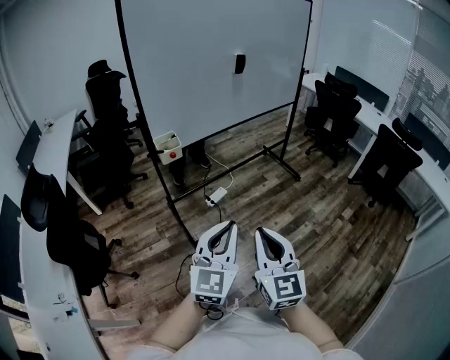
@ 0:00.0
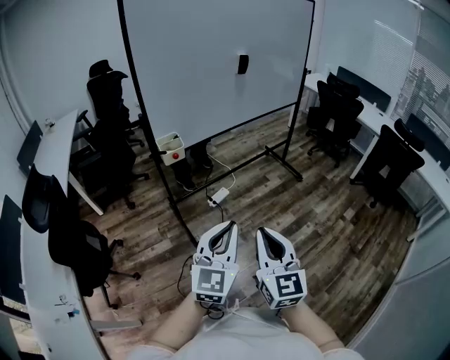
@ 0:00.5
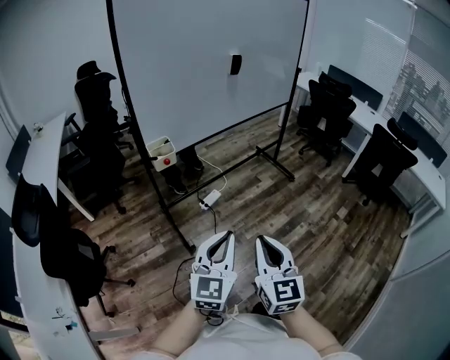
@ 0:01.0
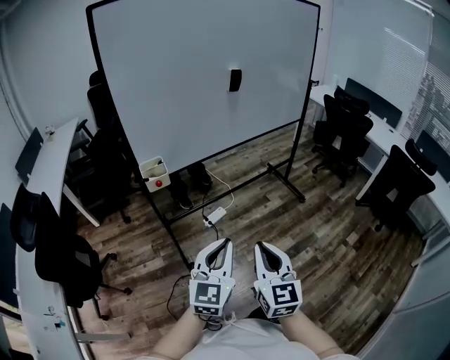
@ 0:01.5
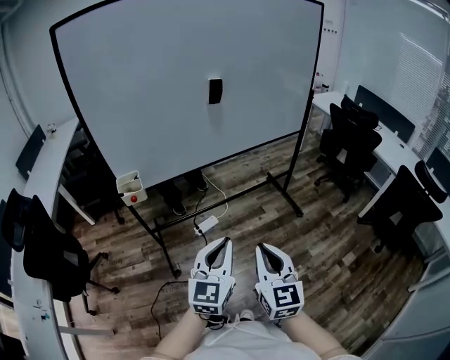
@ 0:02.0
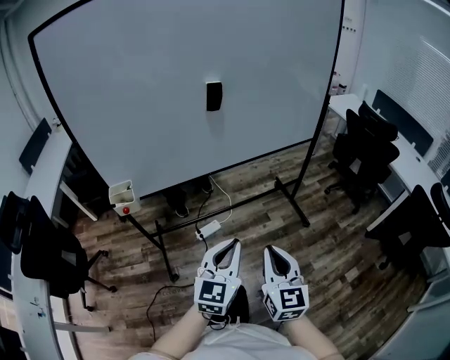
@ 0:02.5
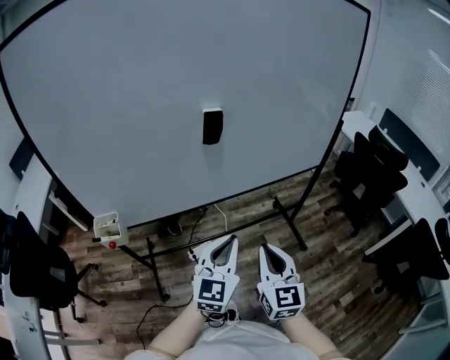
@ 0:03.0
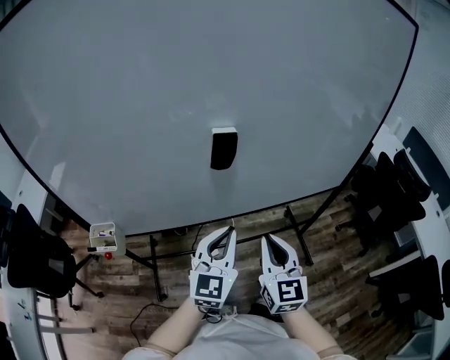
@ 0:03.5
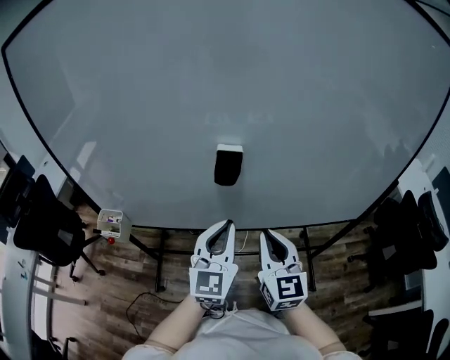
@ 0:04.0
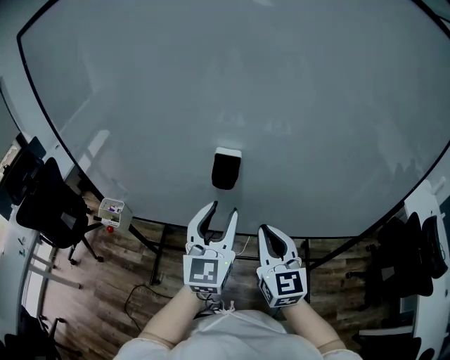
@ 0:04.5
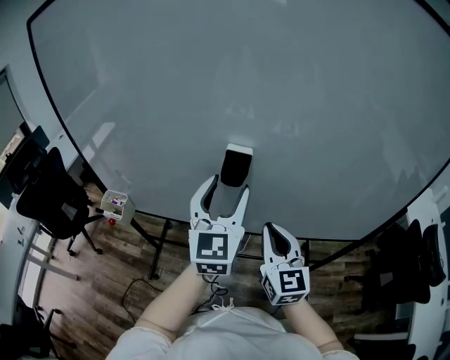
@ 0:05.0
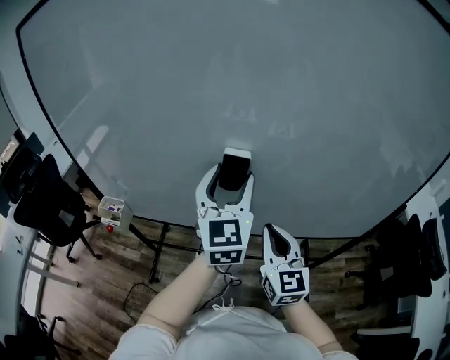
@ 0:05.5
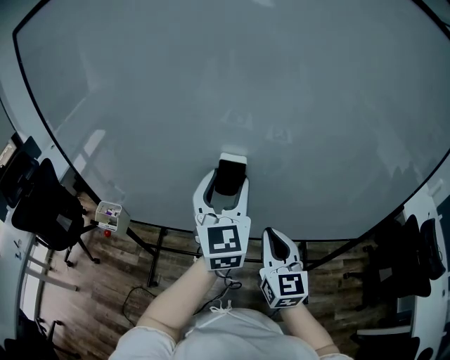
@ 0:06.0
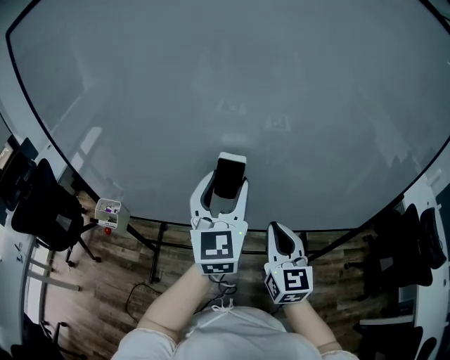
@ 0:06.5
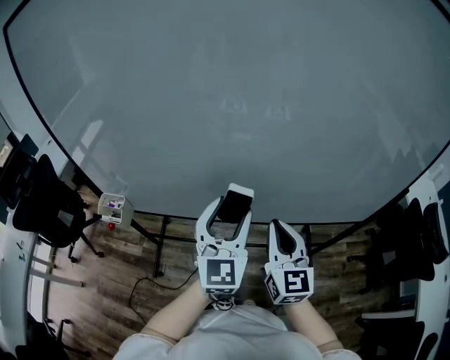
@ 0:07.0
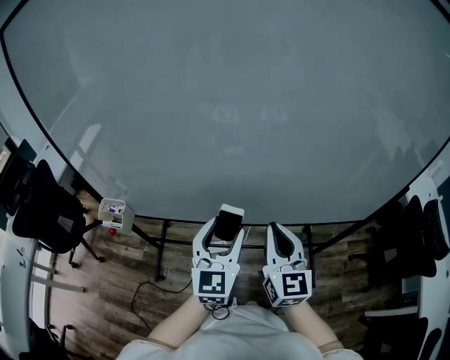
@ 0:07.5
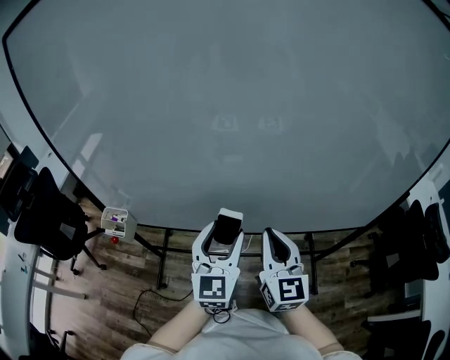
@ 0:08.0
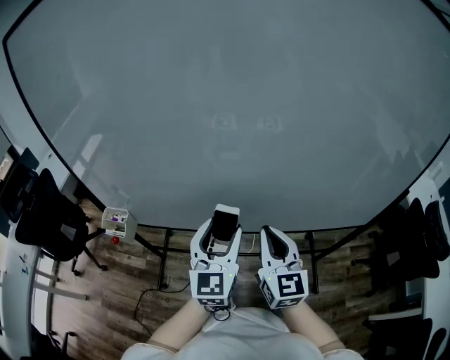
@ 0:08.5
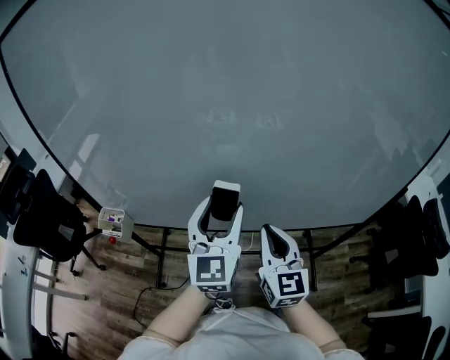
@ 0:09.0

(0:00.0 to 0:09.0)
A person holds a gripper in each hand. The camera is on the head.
0:00.0 - 0:02.0: Both grippers move forward and to the right, about 30 cm.
0:02.0 - 0:04.5: The pair of grippers is taken about 50 cm. The right gripper changes its angle by some 30 degrees, while the left gripper turns by some 40 degrees, and opens its fingers.
0:04.5 - 0:07.0: The left gripper goes upward and returns, approximately 5 cm each way.
0:07.0 - 0:09.0: The left gripper reaches about 5 cm downward, then returns.

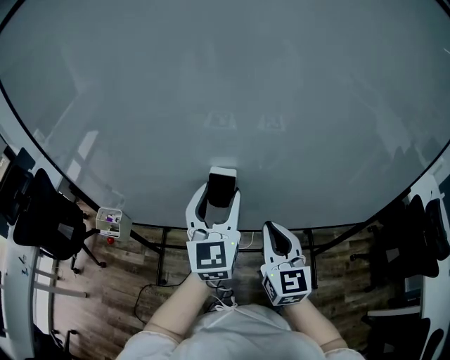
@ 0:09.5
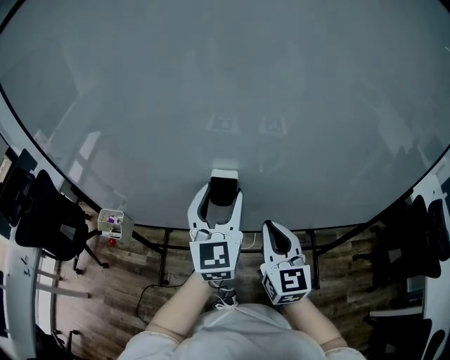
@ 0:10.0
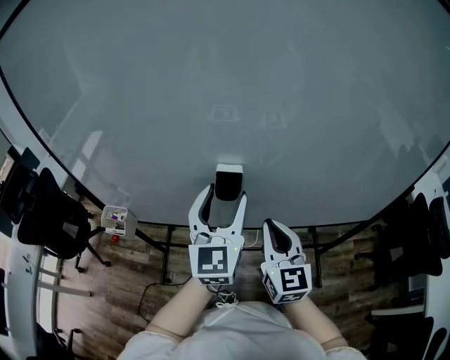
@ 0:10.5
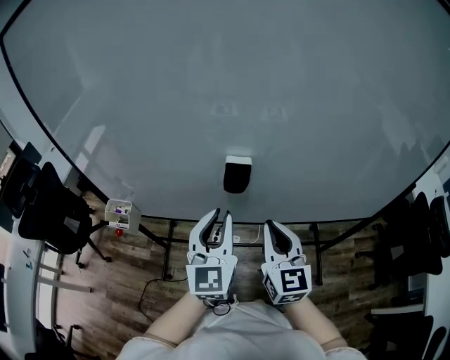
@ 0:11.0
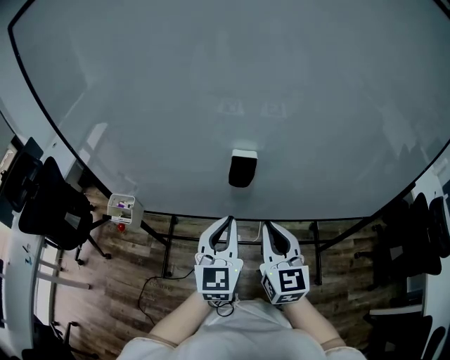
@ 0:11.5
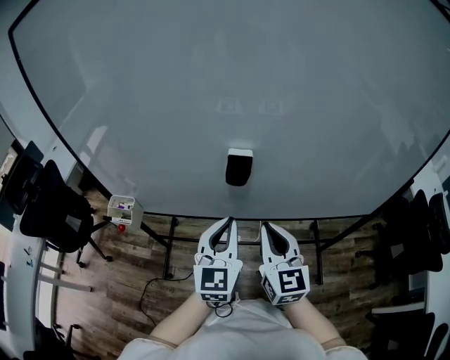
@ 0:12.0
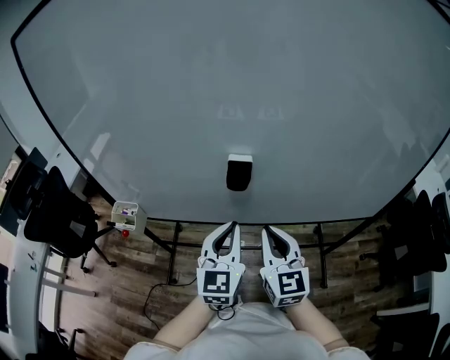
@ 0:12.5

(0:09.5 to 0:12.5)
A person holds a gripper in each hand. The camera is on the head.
0:09.5 - 0:11.0: The left gripper shifts about 5 cm backward, and closes.
0:11.0 - 0:12.5: The grippers move only a little.

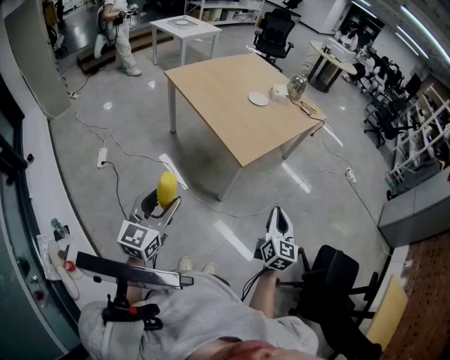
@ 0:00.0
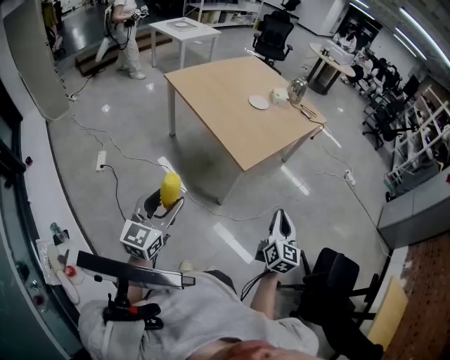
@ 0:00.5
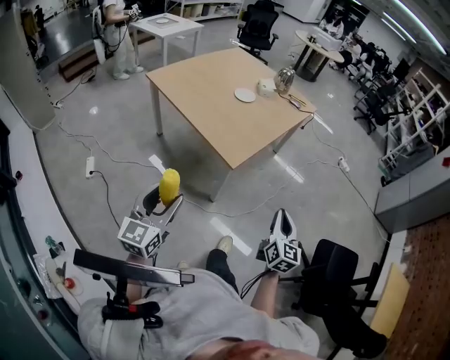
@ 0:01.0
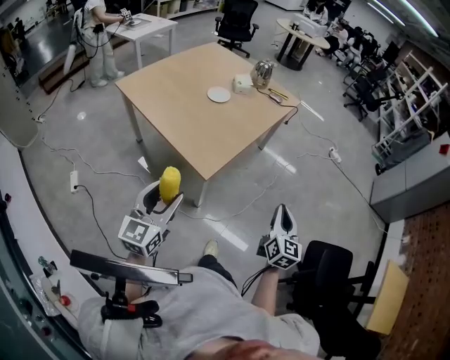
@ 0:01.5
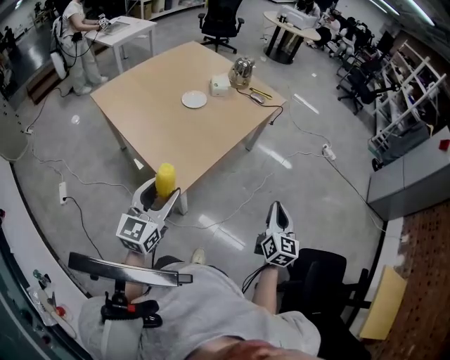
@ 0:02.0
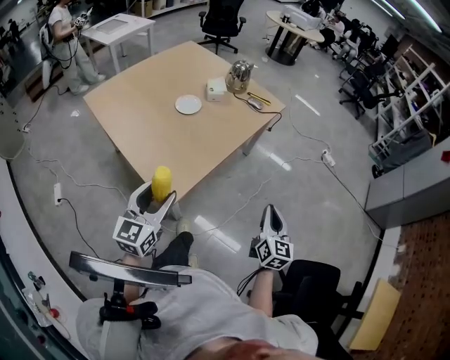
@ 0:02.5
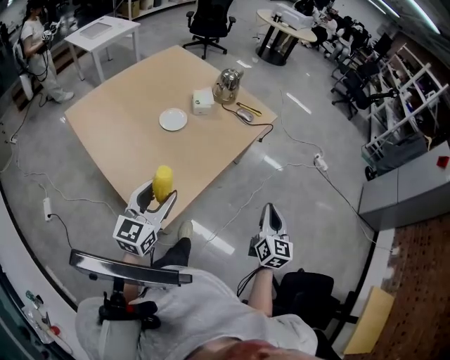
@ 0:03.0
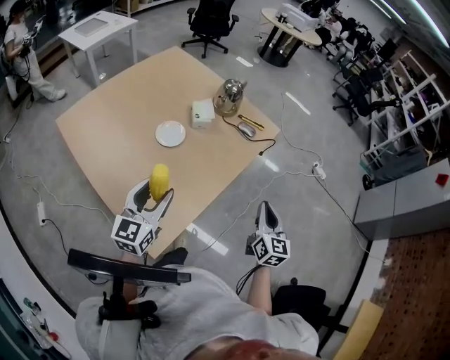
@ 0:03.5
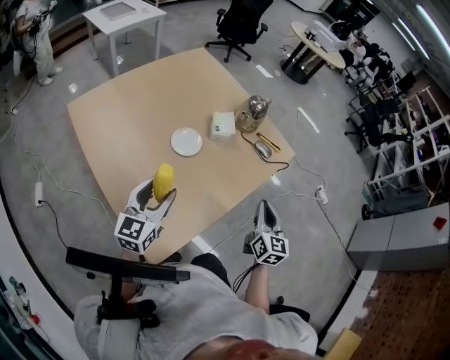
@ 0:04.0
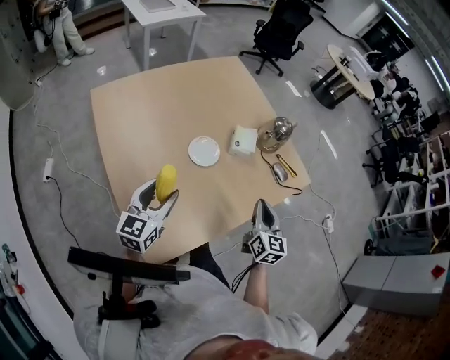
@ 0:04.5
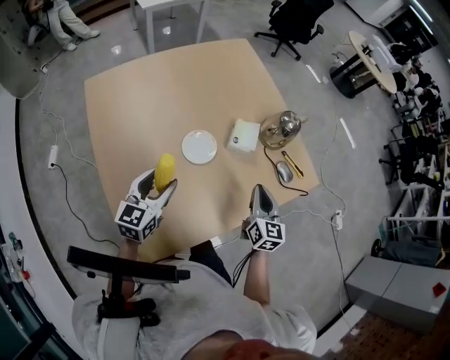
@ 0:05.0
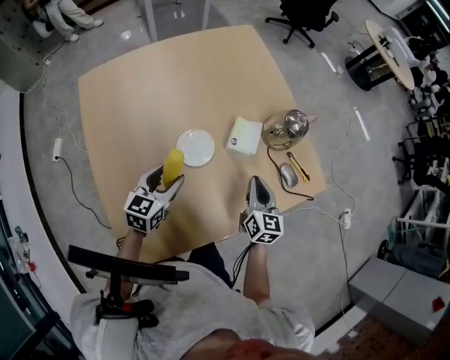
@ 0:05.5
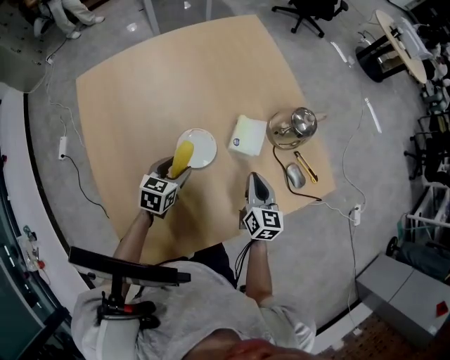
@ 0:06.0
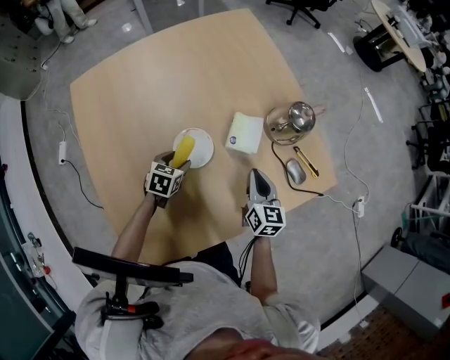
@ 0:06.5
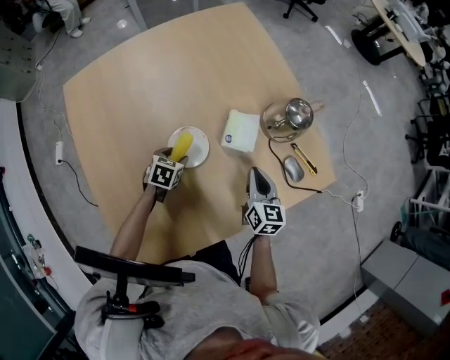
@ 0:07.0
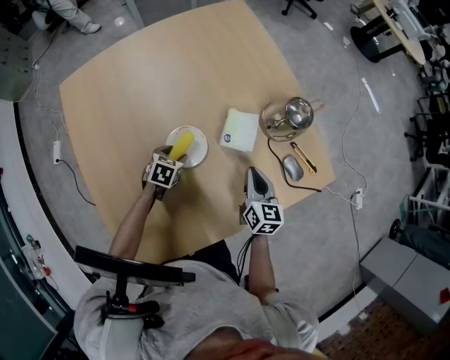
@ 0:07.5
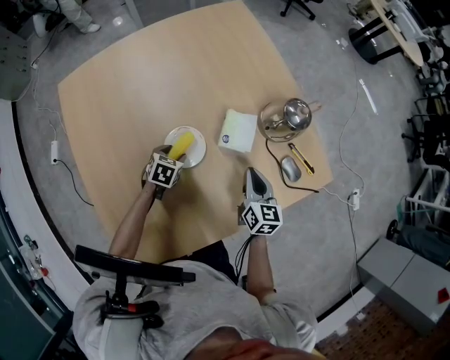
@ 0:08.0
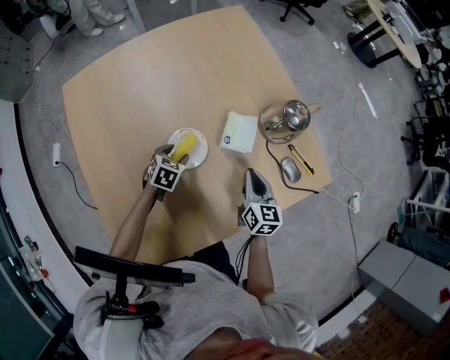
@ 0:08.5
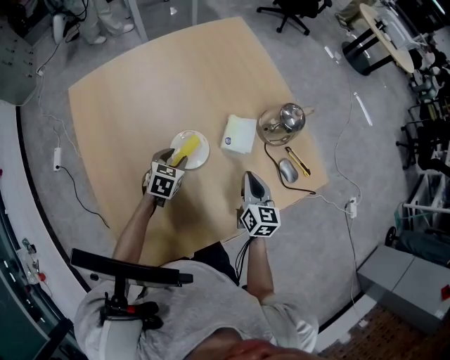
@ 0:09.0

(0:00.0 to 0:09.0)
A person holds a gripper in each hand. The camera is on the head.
0:00.0 - 0:02.0: The grippers both shift forward and to the right by some 35 cm.
0:02.0 - 0:04.5: The two grippers go some 40 cm forward. The left gripper changes its angle by roughly 20 degrees. Meanwhile the right gripper rotates roughly 30 degrees.
0:04.5 - 0:07.0: The right gripper heads forward and downward, covering some 25 cm. Meanwhile the left gripper is displaced downward and forward by about 35 cm, and points its fingers approximately 50 degrees further downward.
0:07.0 - 0:09.0: The left gripper moves upward, roughly 5 cm.

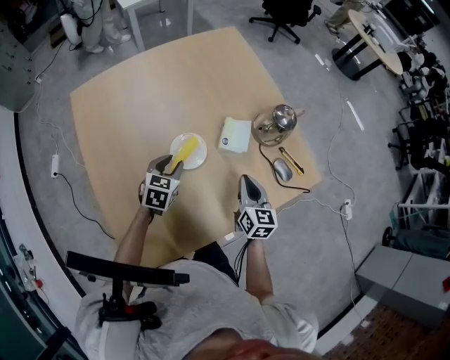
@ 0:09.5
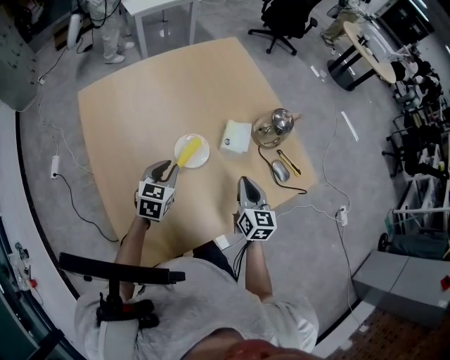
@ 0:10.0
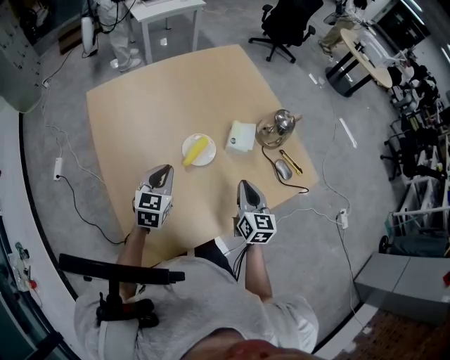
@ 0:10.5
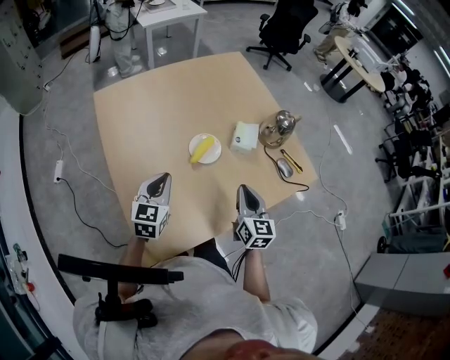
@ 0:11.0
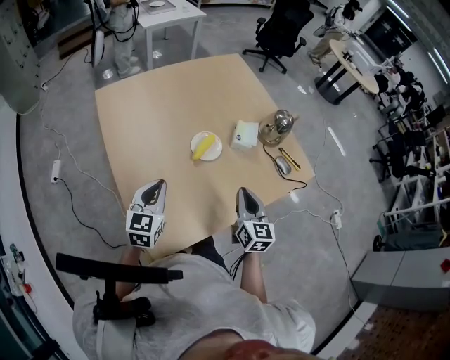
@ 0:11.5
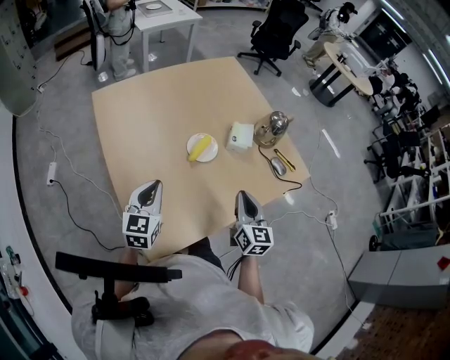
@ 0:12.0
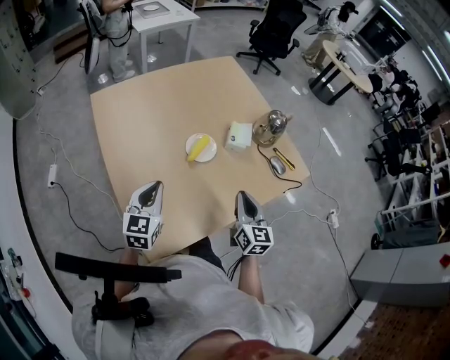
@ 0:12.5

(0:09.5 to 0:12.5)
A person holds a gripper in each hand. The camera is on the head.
0:09.5 - 0:11.0: The left gripper heads backward, upward and to the left, covering roughly 20 cm, turns by some 20 degrees, and closes up, while the right gripper heads backward, to the left and upward, covering approximately 15 cm.
0:11.0 - 0:12.5: The left gripper changes place by approximately 5 cm.

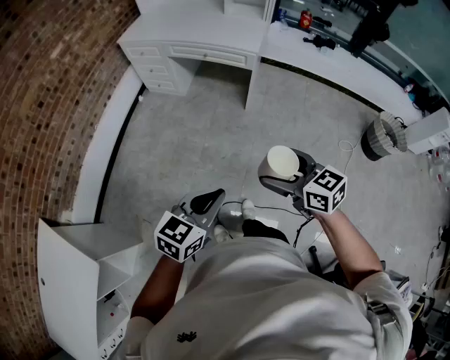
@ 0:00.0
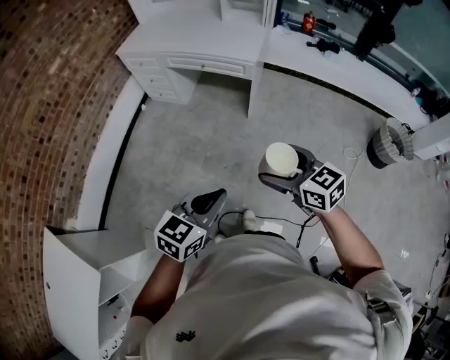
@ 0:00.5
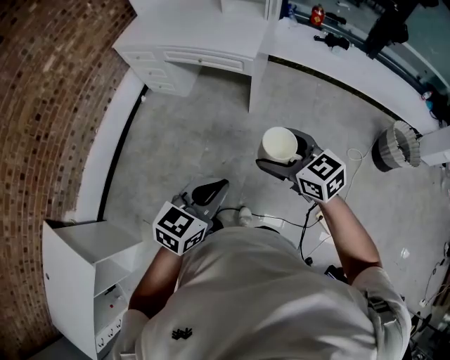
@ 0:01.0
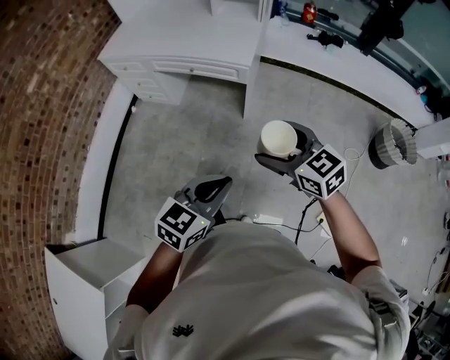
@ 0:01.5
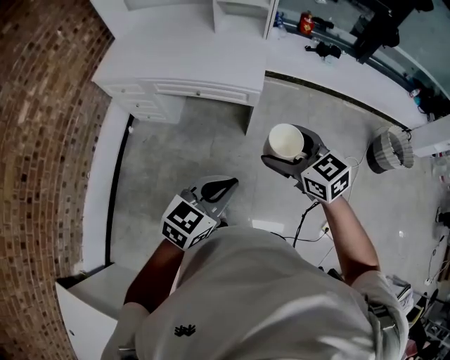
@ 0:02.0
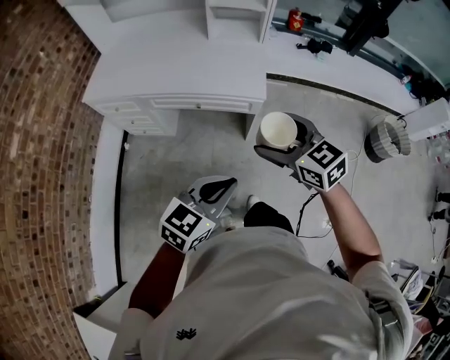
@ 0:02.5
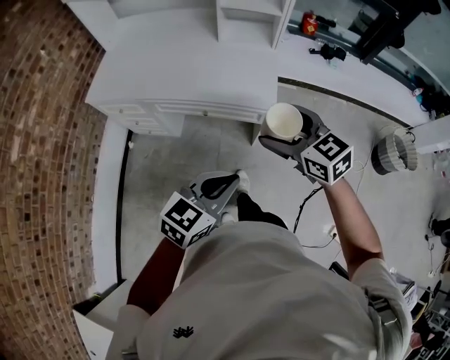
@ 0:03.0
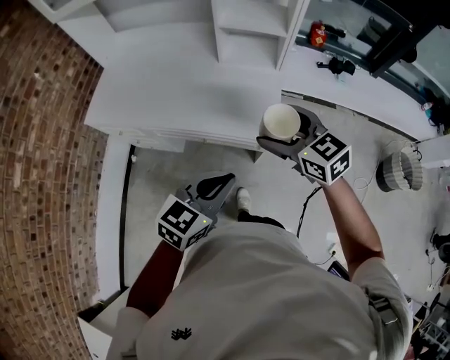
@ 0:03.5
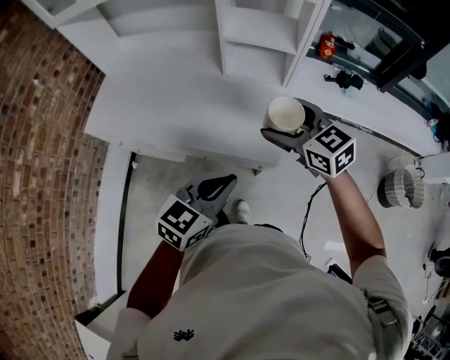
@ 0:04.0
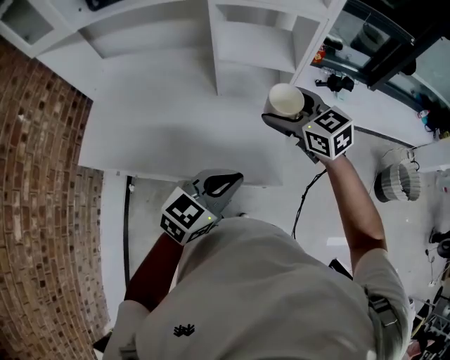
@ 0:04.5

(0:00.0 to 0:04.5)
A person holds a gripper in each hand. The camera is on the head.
0:00.0 - 0:02.0: The two grippers go roughly 35 cm forward.
0:02.0 - 0:04.5: Both grippers are carried forward, about 50 cm.
